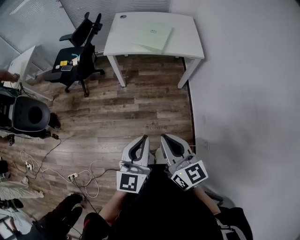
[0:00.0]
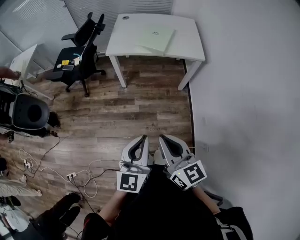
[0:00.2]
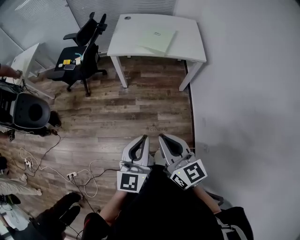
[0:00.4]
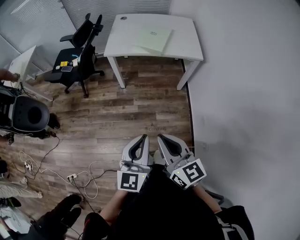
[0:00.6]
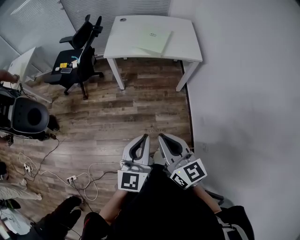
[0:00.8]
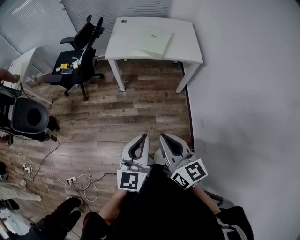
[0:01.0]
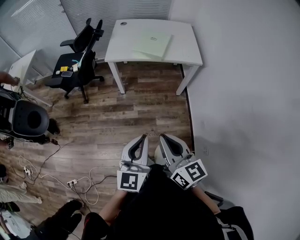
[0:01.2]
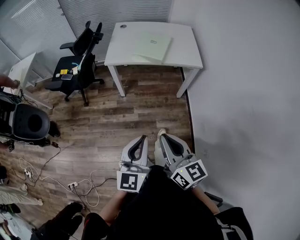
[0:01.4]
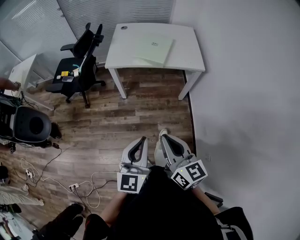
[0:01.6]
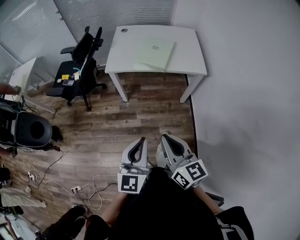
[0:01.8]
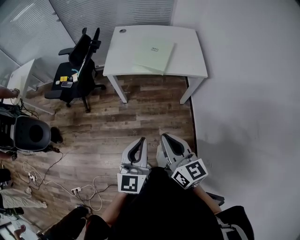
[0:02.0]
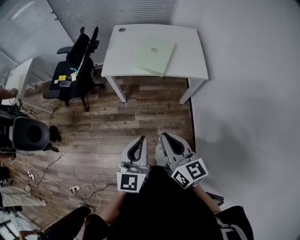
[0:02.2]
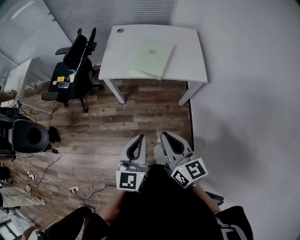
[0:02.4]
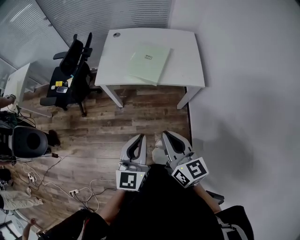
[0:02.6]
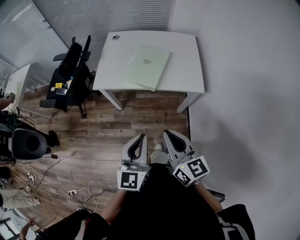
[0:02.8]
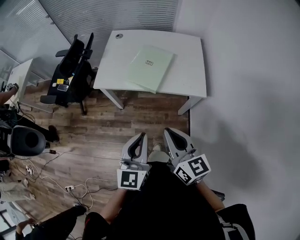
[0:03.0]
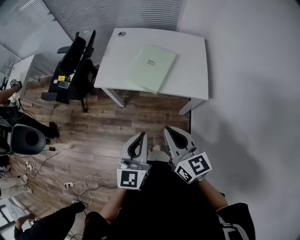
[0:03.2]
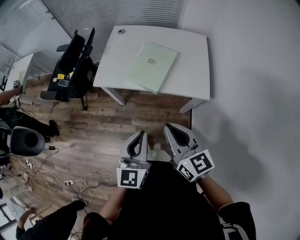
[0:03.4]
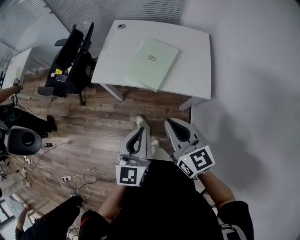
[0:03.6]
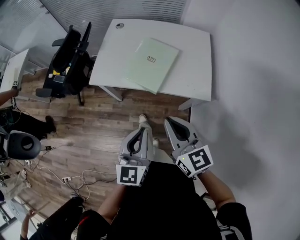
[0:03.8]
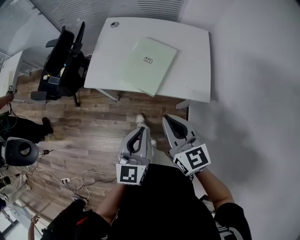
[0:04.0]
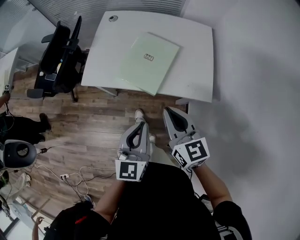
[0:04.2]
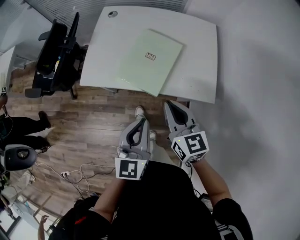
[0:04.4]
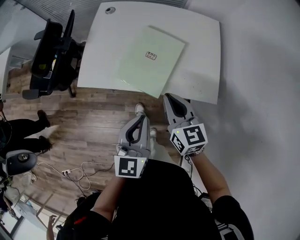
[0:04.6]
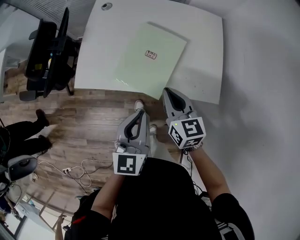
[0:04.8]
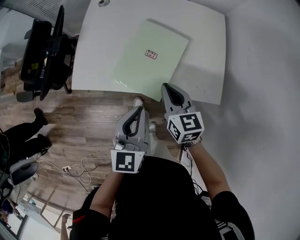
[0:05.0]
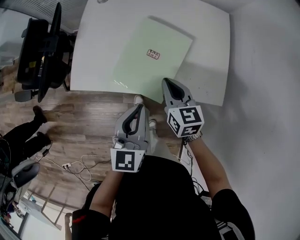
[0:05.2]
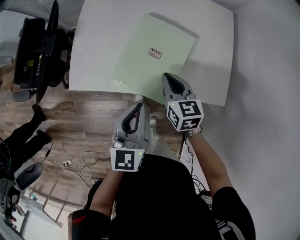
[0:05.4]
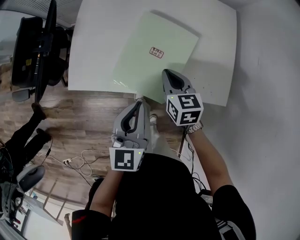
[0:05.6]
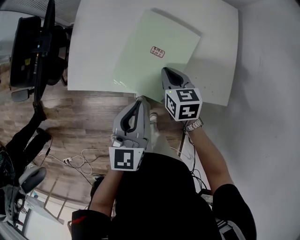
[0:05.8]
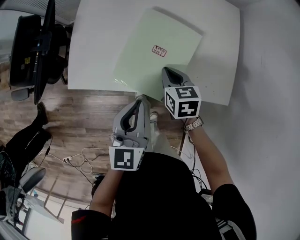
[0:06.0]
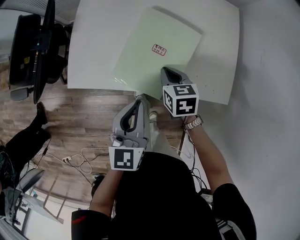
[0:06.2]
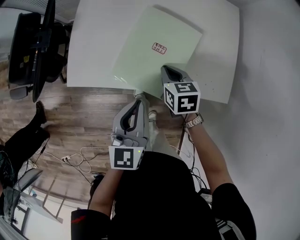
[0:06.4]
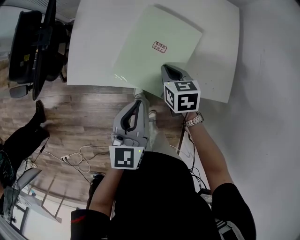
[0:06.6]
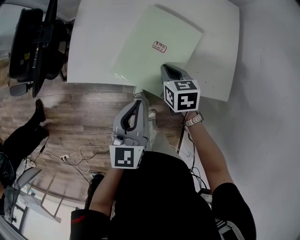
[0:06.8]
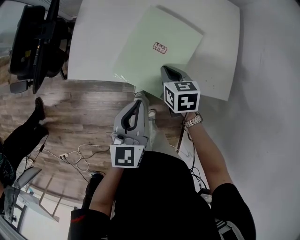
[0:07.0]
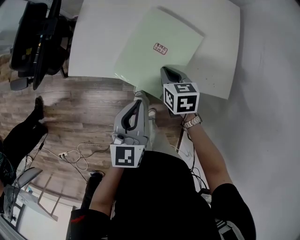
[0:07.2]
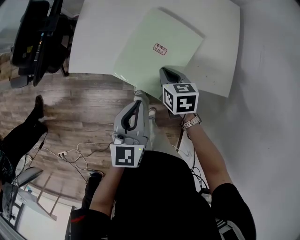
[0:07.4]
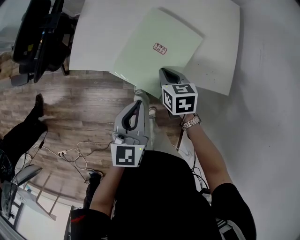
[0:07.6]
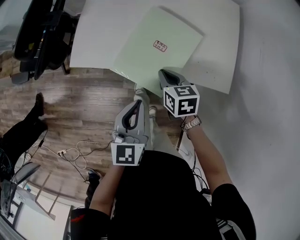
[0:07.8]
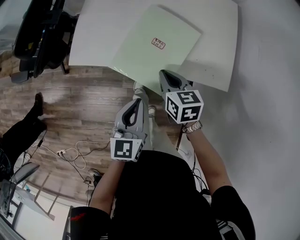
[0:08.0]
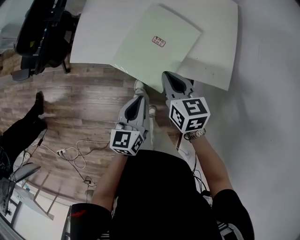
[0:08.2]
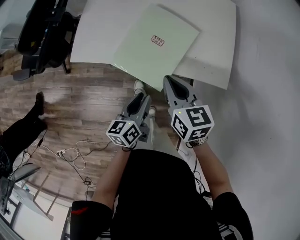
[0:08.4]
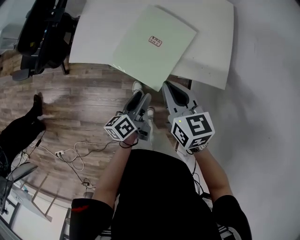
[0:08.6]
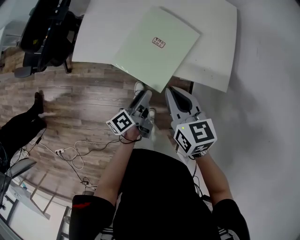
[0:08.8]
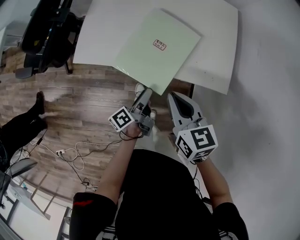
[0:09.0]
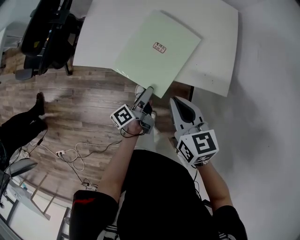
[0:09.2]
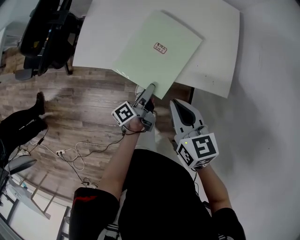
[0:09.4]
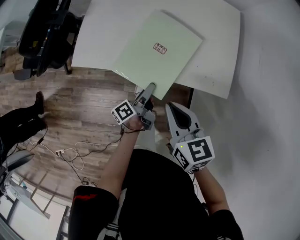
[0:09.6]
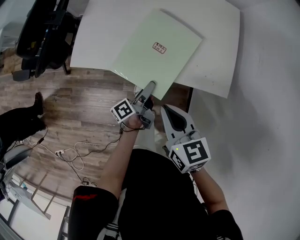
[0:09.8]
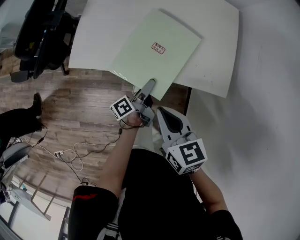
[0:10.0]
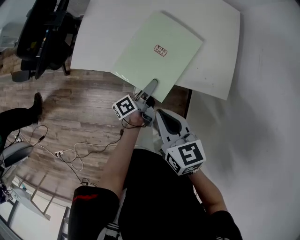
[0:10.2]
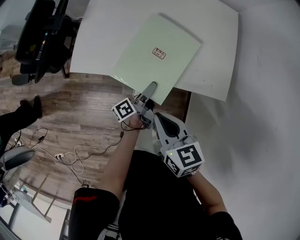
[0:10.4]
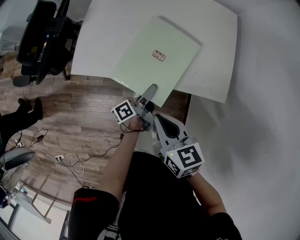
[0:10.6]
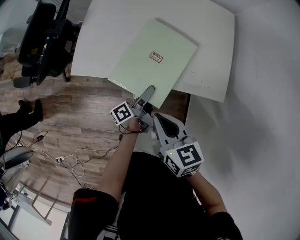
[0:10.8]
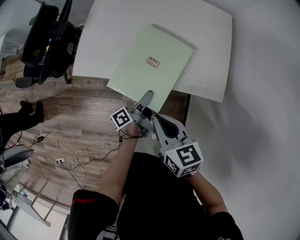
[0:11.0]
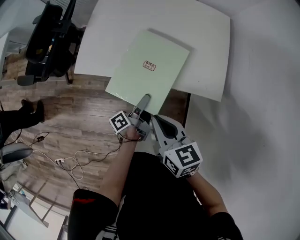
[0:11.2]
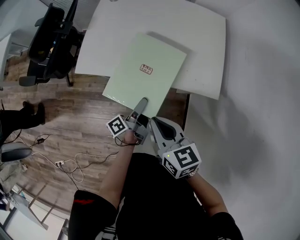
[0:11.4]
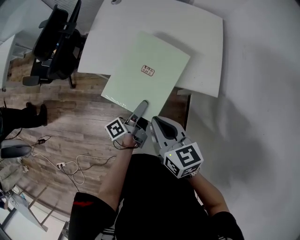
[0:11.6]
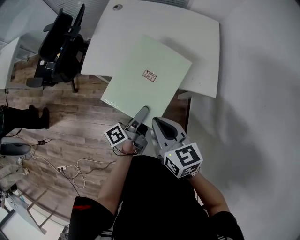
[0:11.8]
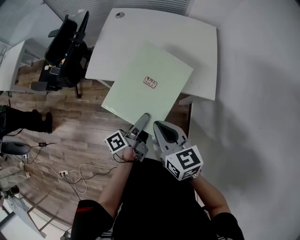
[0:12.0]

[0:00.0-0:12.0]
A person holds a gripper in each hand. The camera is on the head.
0:00.0 to 0:01.6: The grippers both shift forward by roughly 5 cm.
0:01.6 to 0:03.0: Both grippers move forward and to the right, some 30 cm.
0:03.0 to 0:04.4: Both grippers move forward and downward, roughly 20 cm.
0:04.4 to 0:06.0: The left gripper travels forward and downward by some 15 cm. Meanwhile the right gripper moves downward and forward, some 25 cm, and turns by roughly 30 degrees.
0:06.0 to 0:07.6: Both grippers move backward, approximately 5 cm.
0:07.6 to 0:09.0: The right gripper shifts about 15 cm upward and backward, while the left gripper heads downward, covering some 15 cm, twists approximately 70 degrees counterclockwise, seen from behind, and opens up.
0:09.0 to 0:10.4: The right gripper shifts by about 5 cm. Meanwhile the left gripper shifts some 5 cm forward.
0:10.4 to 0:12.0: The right gripper heads backward and upward, covering approximately 15 cm. The left gripper moves backward and upward, about 20 cm.

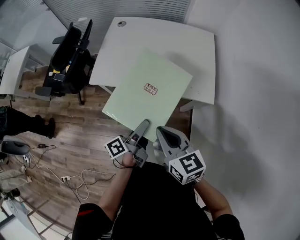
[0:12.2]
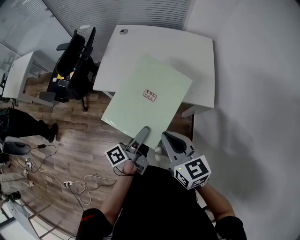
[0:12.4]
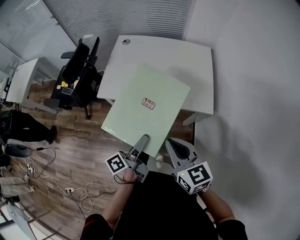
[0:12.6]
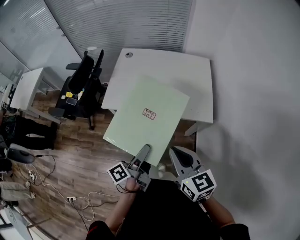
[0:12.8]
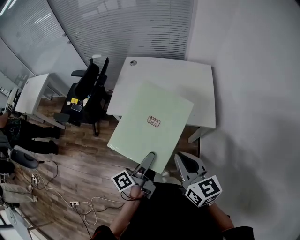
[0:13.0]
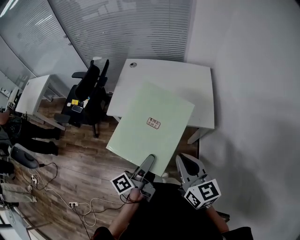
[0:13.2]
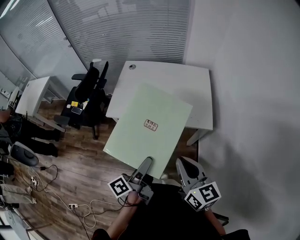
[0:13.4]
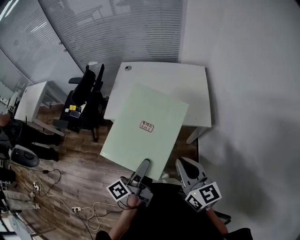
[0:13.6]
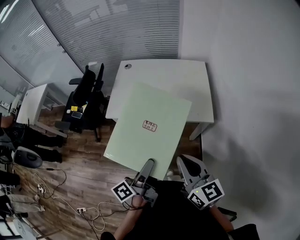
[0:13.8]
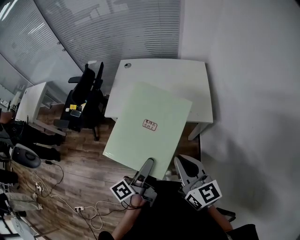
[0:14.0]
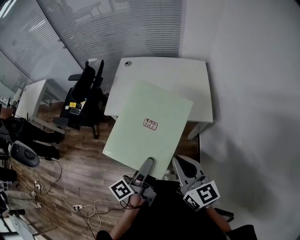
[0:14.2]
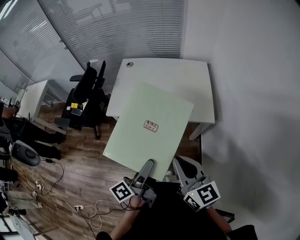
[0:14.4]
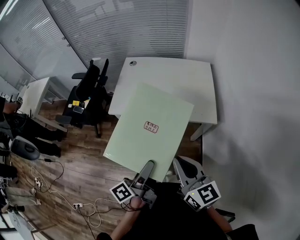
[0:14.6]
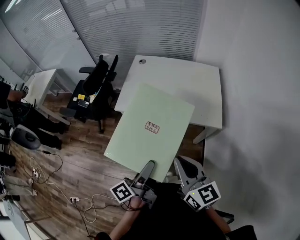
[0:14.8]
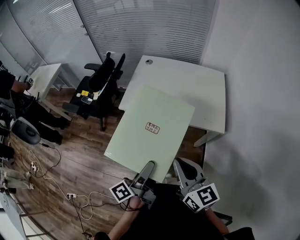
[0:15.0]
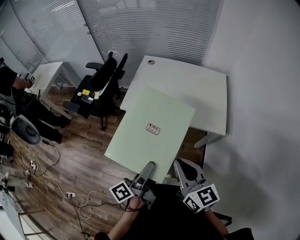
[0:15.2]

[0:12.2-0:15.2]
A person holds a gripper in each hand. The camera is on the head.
0:12.2 to 0:13.8: The left gripper goes approximately 15 cm upward and backward. The right gripper goes approximately 15 cm upward, backward and to the right.
0:13.8 to 0:15.2: Both grippers move to the left, roughly 5 cm.

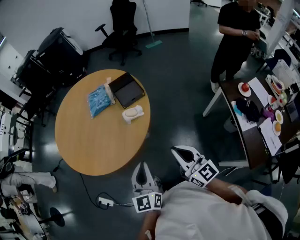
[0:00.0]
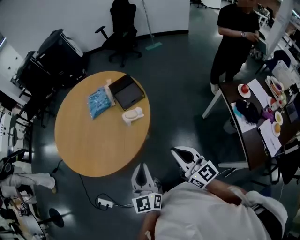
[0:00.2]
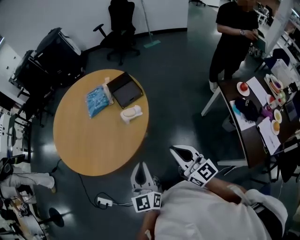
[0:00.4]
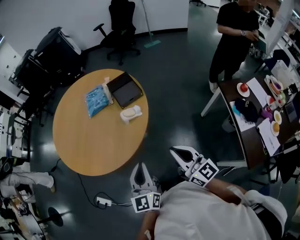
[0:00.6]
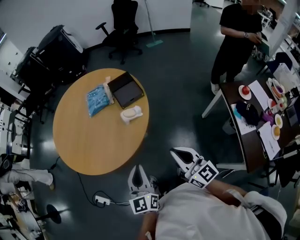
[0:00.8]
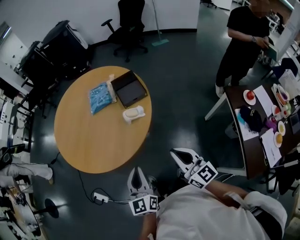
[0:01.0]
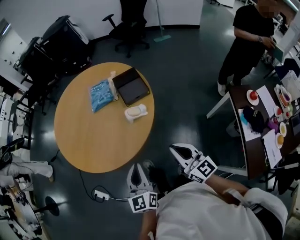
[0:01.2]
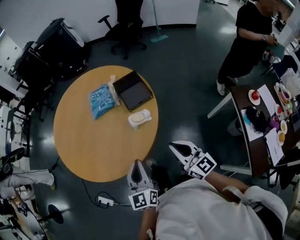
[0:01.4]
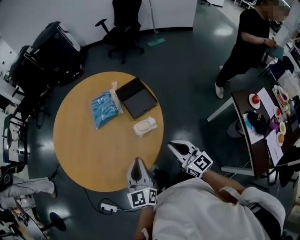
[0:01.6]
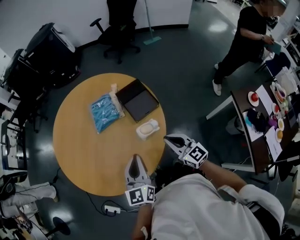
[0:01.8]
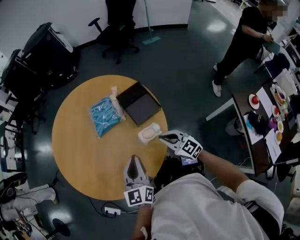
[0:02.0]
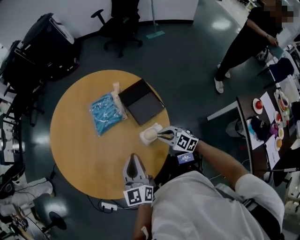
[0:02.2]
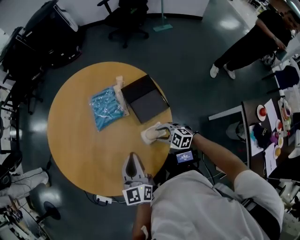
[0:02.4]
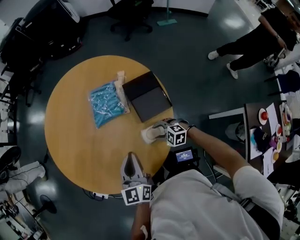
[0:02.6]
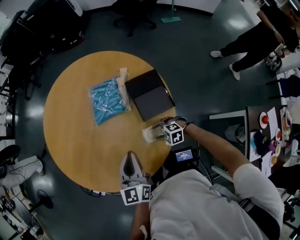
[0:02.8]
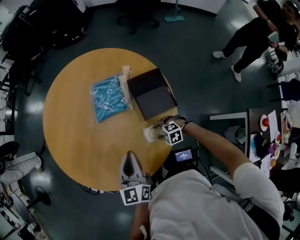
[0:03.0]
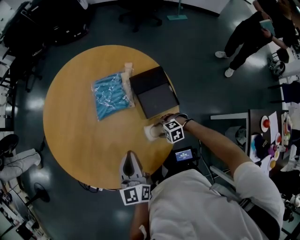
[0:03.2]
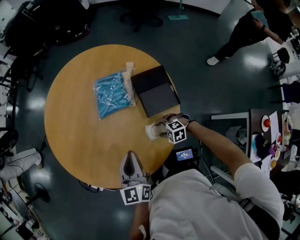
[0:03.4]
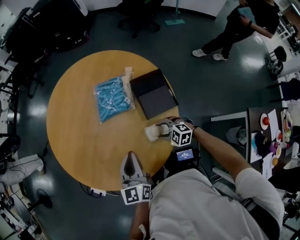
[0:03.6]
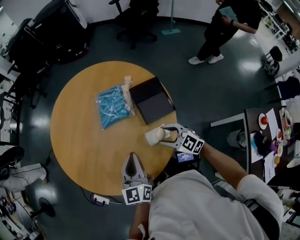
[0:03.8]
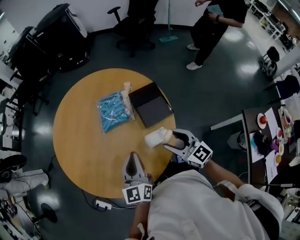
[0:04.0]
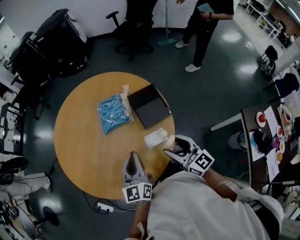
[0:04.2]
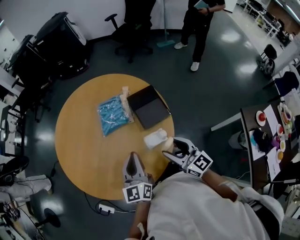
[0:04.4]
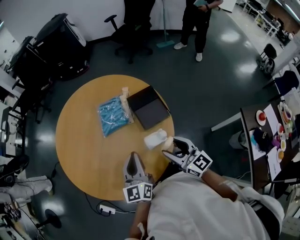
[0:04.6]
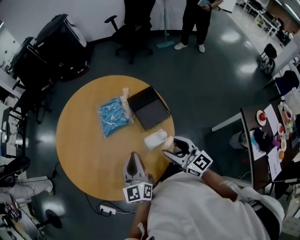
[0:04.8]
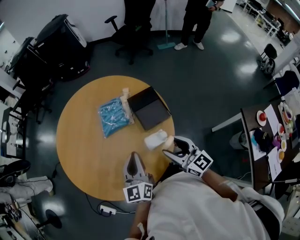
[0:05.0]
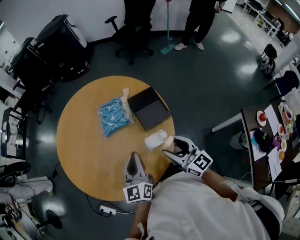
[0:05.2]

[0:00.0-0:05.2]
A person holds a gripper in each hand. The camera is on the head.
0:00.0 to 0:01.8: Both grippers travel together forward, approximately 25 cm.
0:01.8 to 0:03.4: The right gripper moves downward, roughly 25 cm, tips its fingers downward by about 50 degrees, and opens up, while the left gripper moves some 15 cm.
0:03.4 to 0:05.2: The right gripper goes about 30 cm upward, and angles its fingers upward, by roughly 60 degrees, while the left gripper travels upward by some 5 cm.

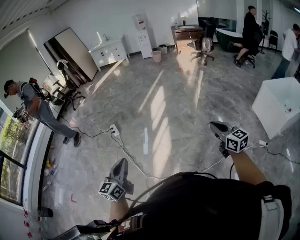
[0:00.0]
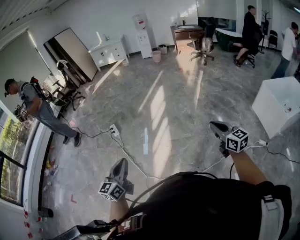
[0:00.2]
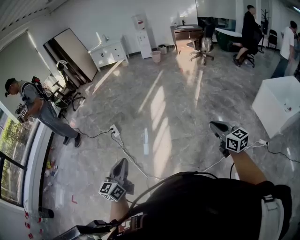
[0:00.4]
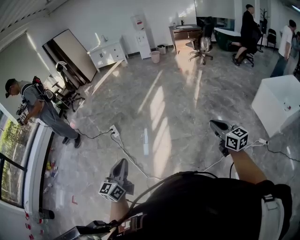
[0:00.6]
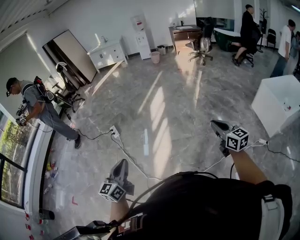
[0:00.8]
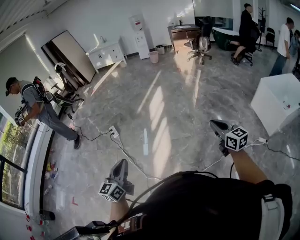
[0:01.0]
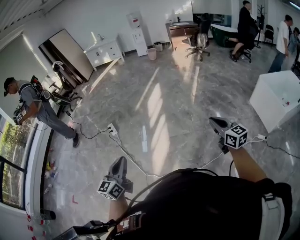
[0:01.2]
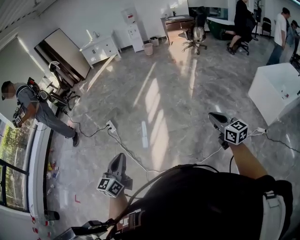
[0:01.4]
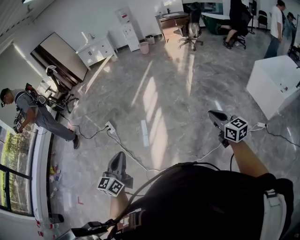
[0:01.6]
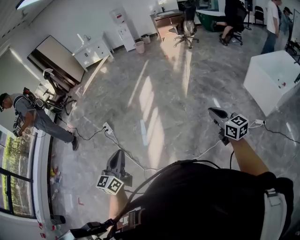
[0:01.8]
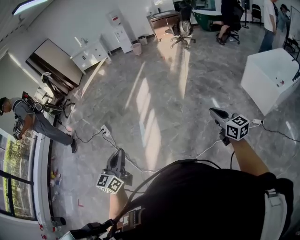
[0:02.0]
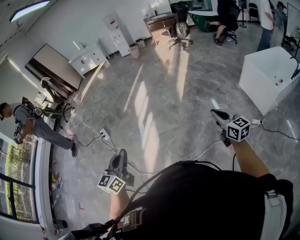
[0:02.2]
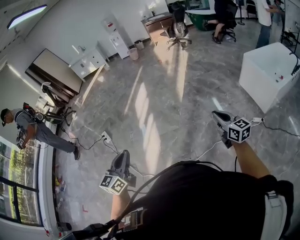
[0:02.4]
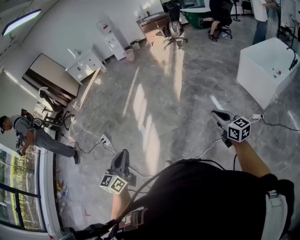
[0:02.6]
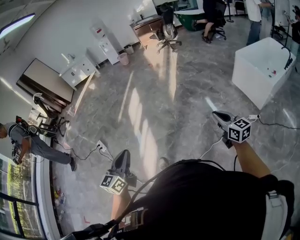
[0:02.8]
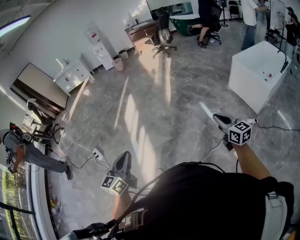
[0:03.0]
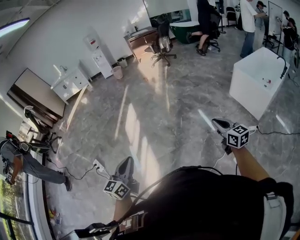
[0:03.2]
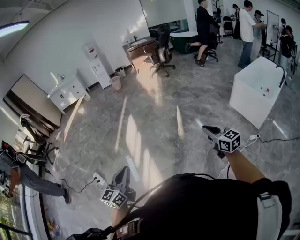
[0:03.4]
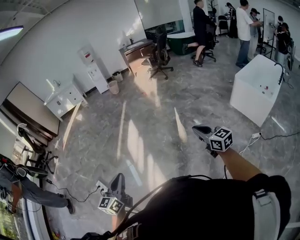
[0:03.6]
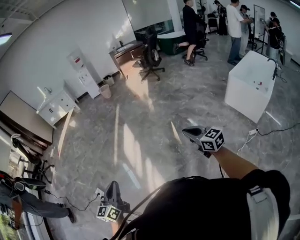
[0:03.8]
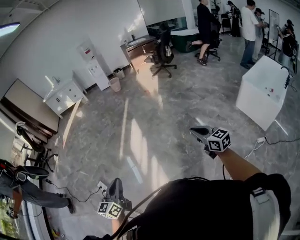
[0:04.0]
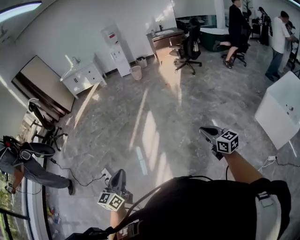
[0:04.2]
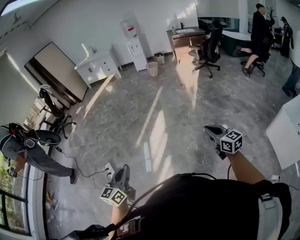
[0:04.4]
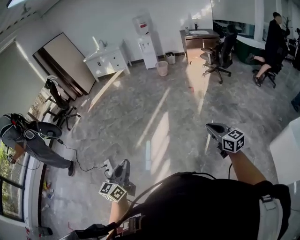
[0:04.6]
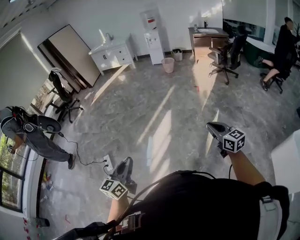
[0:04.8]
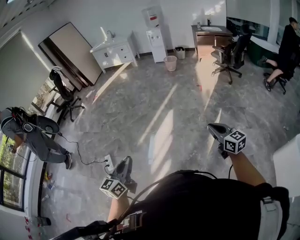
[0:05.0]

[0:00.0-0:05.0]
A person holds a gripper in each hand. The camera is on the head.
0:00.0 to 0:01.6: Both grippers move to the right, about 5 cm.
0:01.6 to 0:03.4: The grippers both shift forward by roughly 30 cm.
0:03.4 to 0:05.0: Both grippers are carried about 50 cm. The right gripper changes its angle by some 30 degrees. The left gripper changes its angle by some 30 degrees.
